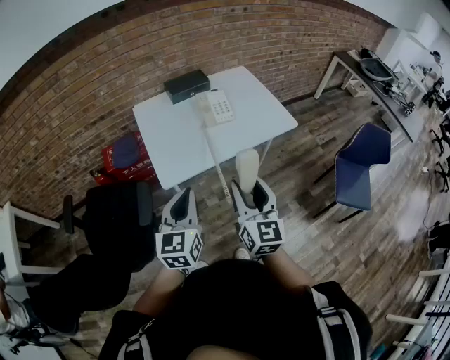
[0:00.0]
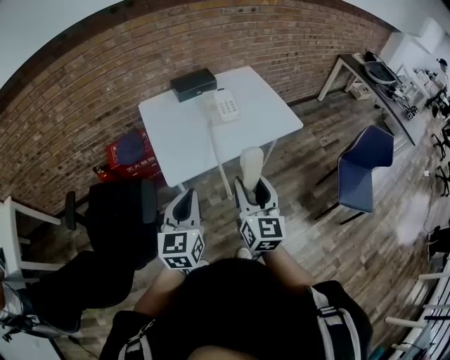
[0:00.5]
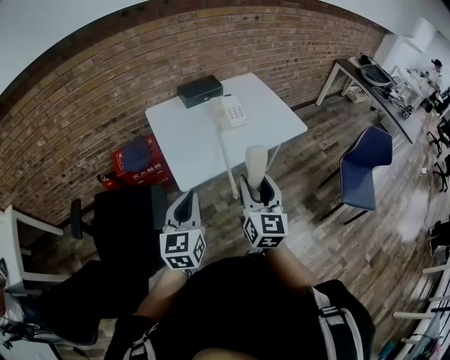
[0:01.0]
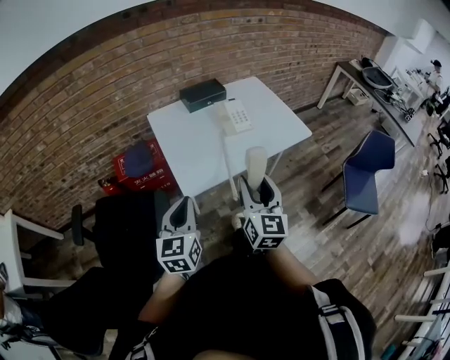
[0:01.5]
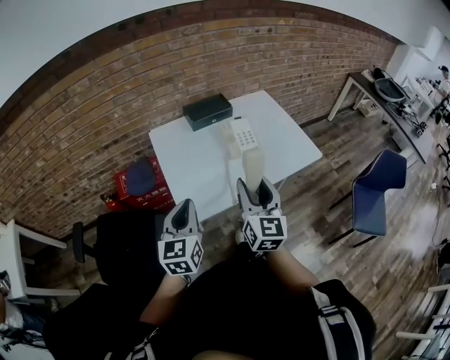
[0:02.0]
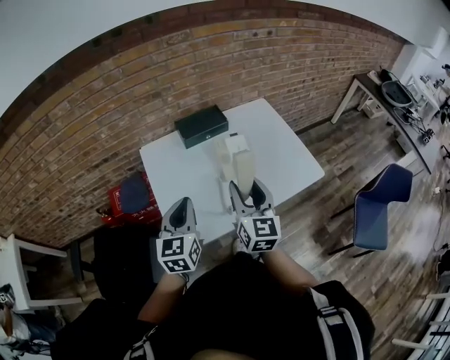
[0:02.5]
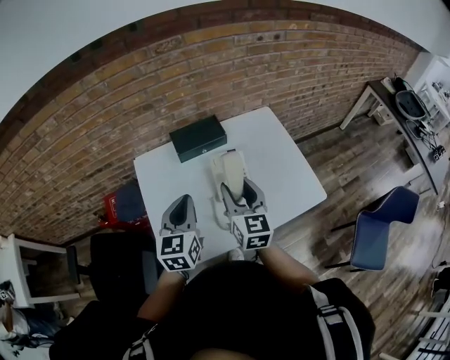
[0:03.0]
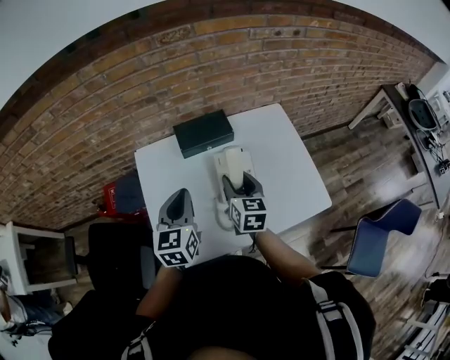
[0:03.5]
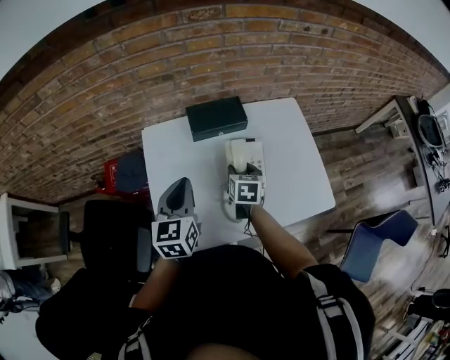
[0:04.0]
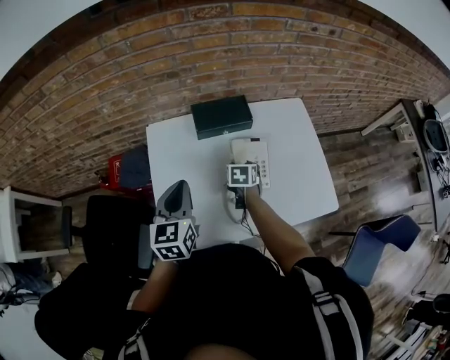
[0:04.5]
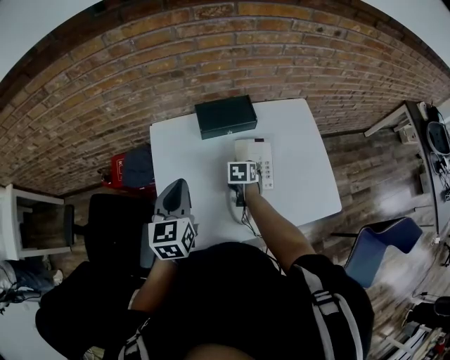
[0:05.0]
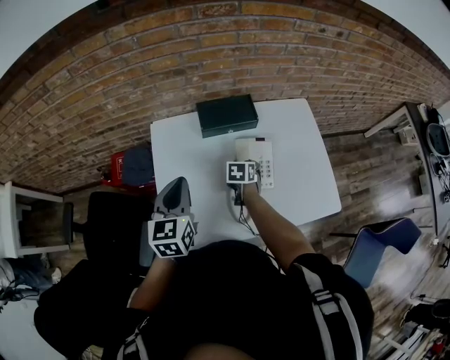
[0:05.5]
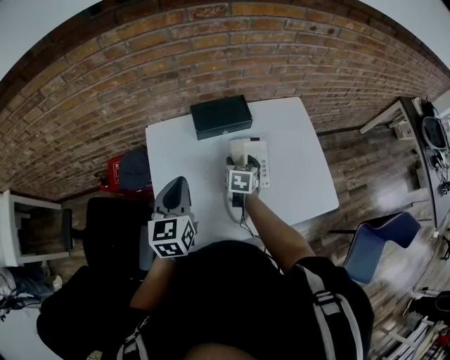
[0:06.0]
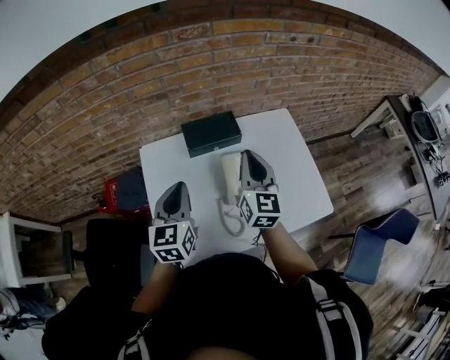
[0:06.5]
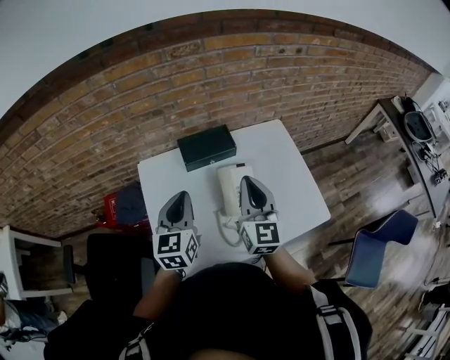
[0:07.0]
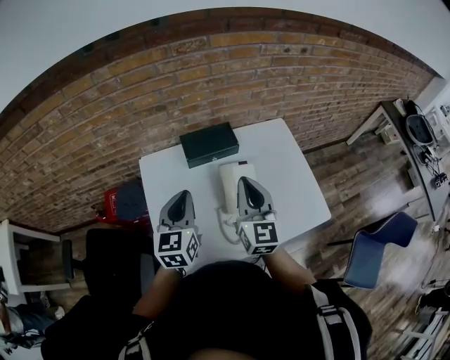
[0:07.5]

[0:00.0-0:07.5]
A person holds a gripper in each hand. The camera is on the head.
0:00.0 to 0:02.0: The two grippers go approximately 15 cm forward and to the left.
0:02.0 to 0:04.0: The right gripper moves forward and downward, roughly 40 cm, and angles its fingers downward, by approximately 40 degrees. Meanwhile the left gripper shifts roughly 30 cm forward.
0:04.0 to 0:05.5: The right gripper is displaced downward by some 10 cm.
0:05.5 to 0:07.5: The left gripper ends up roughly 5 cm from where it was, while the right gripper travels upward by approximately 30 cm, tips its fingers upward by roughly 60 degrees, and closes its fingers.

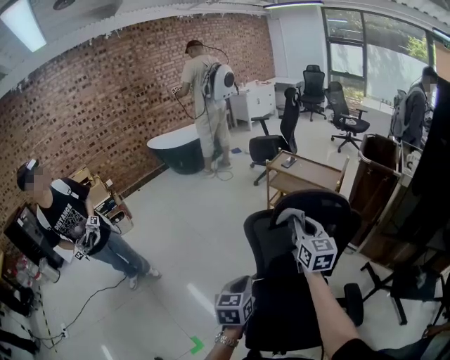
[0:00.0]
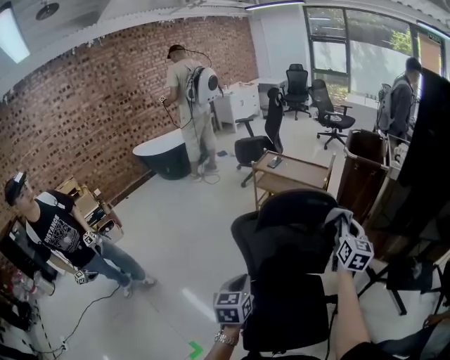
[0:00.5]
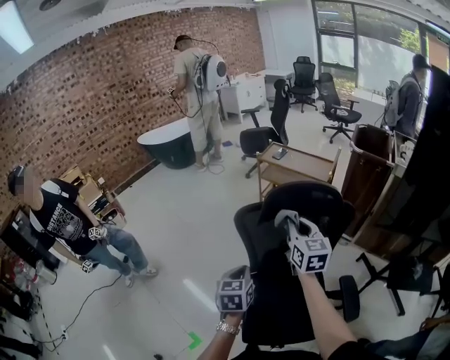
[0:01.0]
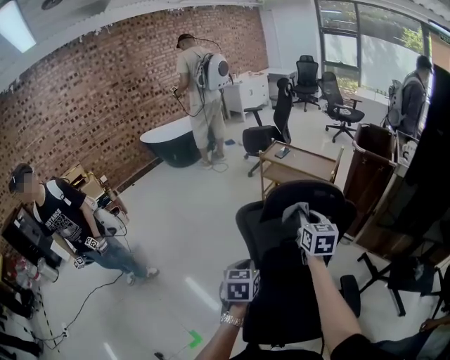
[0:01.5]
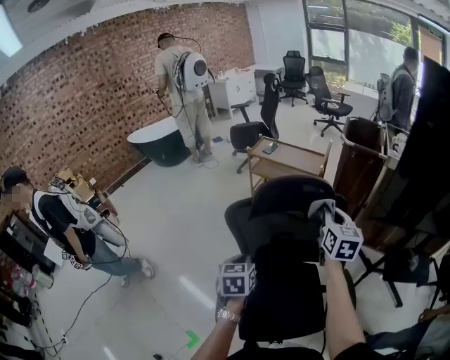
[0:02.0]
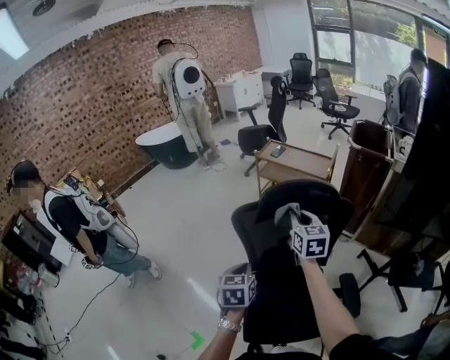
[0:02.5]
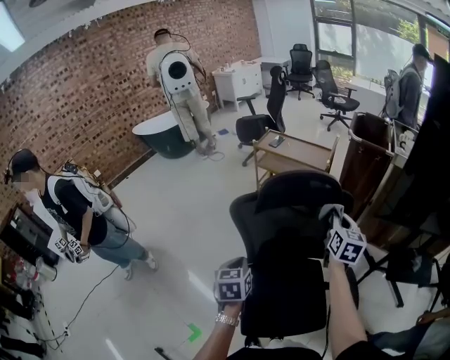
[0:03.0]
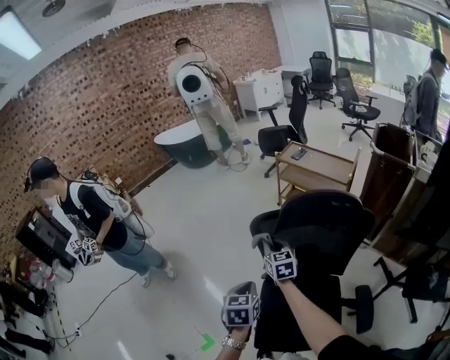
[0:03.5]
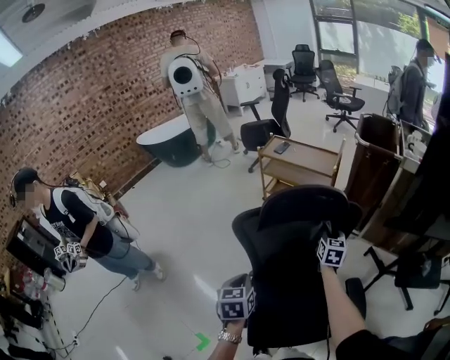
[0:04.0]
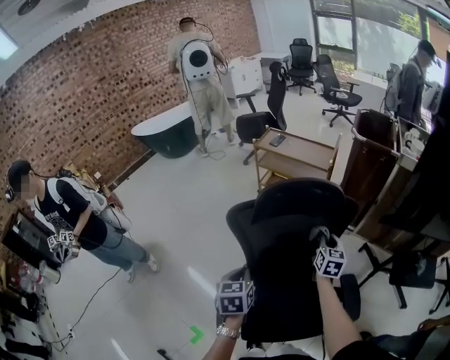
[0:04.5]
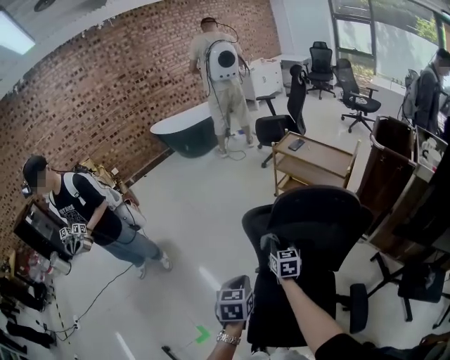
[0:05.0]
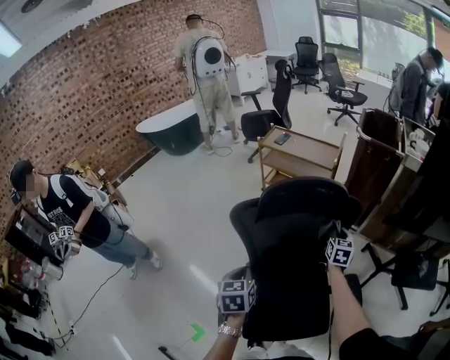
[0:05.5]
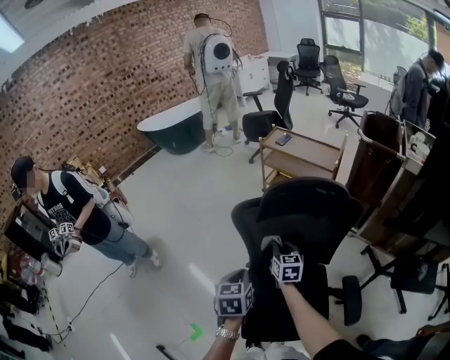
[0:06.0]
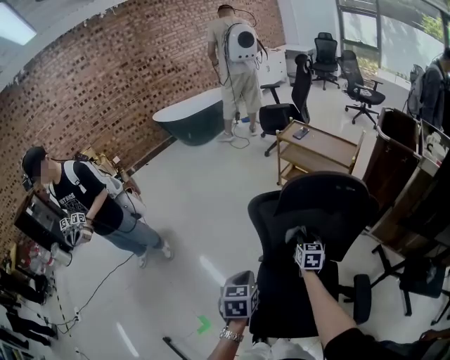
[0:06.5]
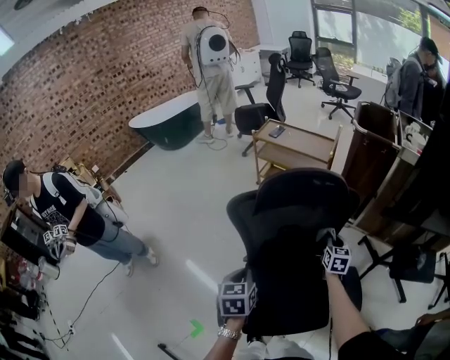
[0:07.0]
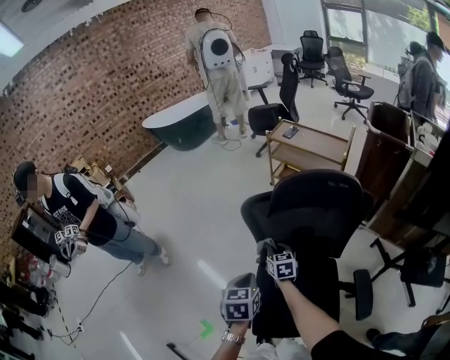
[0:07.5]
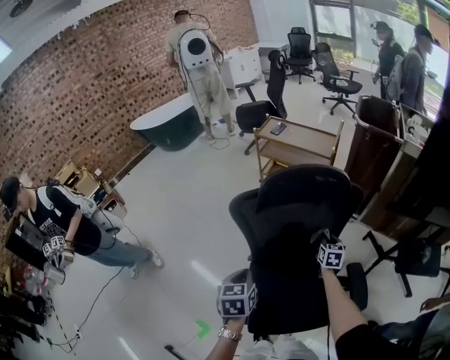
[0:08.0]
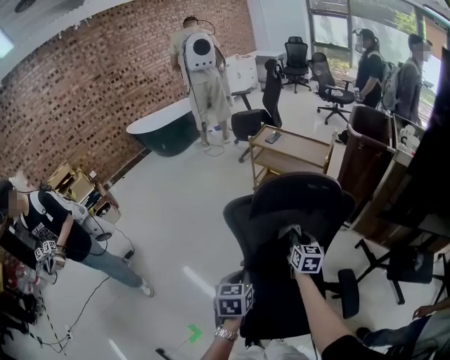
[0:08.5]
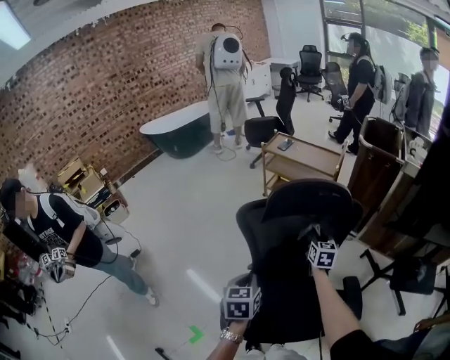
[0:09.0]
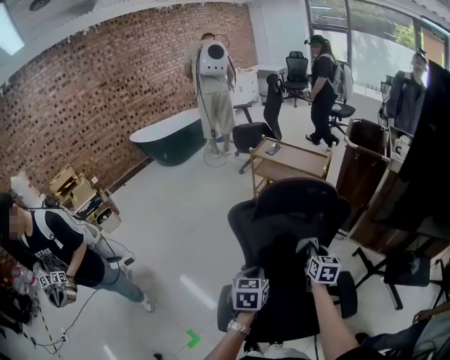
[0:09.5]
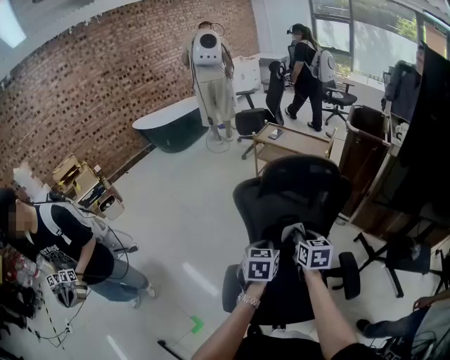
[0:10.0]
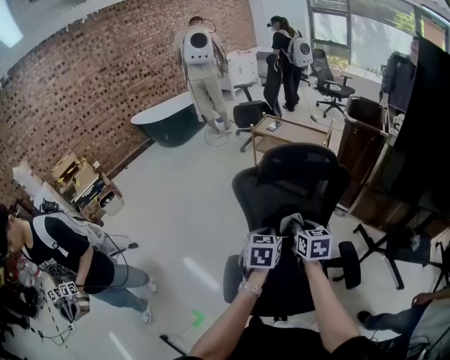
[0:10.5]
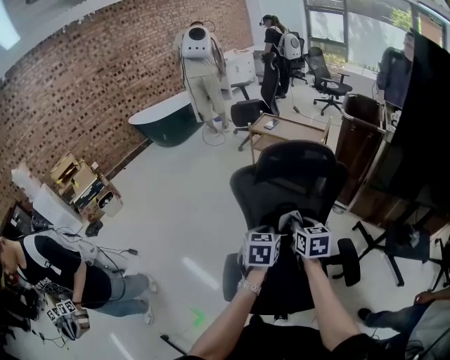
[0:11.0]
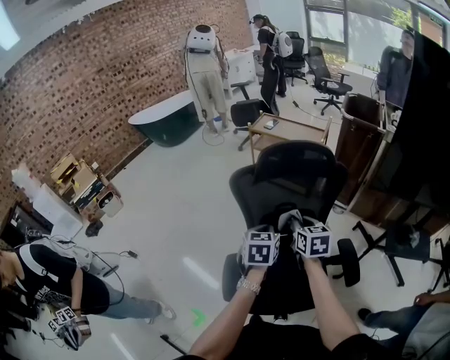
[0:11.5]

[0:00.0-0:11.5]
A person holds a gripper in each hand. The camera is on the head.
0:00.0 to 0:02.0: The left gripper goes roughly 5 cm forward. The right gripper moves left and right over roughly 20 cm, changing direction 2 times, and swivels about 20 degrees.
0:02.0 to 0:04.0: The right gripper swings left and right, roughly 30 cm each way, with 3 reversals.
0:04.0 to 0:06.0: The right gripper swings left and right, some 30 cm each way, with 2 reversals, and turns by approximately 20 degrees.
0:06.0 to 0:07.5: The right gripper shifts approximately 5 cm downward, and goes to the right and returns, about 25 cm each way.
0:07.5 to 0:09.5: The left gripper shifts roughly 10 cm to the right, while the right gripper moves left and right over some 30 cm, changing direction 2 times, and changes its angle by some 20 degrees.
0:09.5 to 0:11.5: The right gripper goes approximately 10 cm to the left, upward and backward.

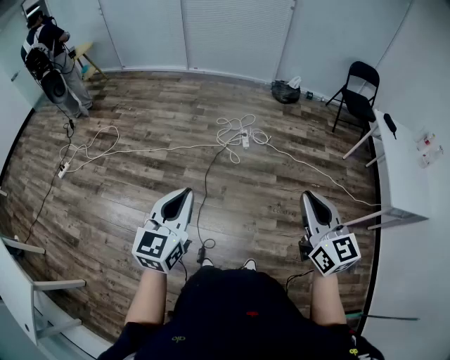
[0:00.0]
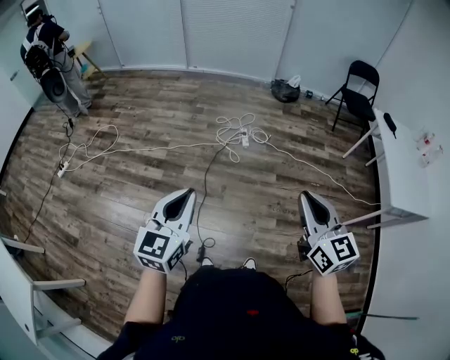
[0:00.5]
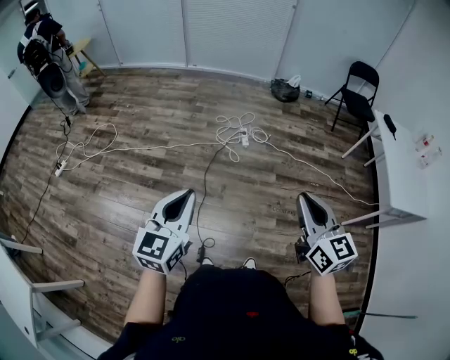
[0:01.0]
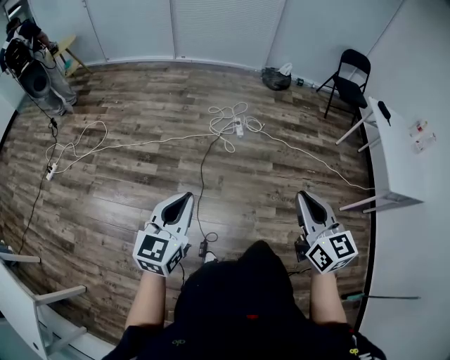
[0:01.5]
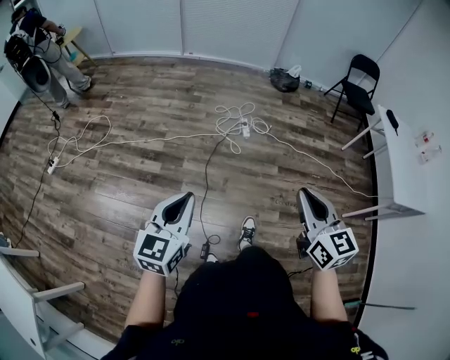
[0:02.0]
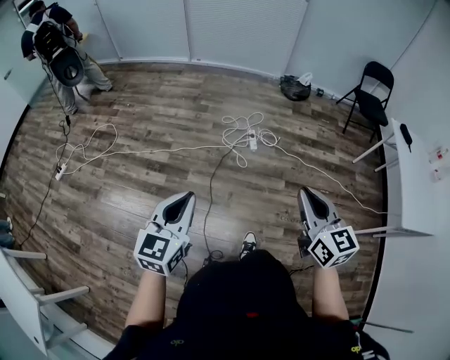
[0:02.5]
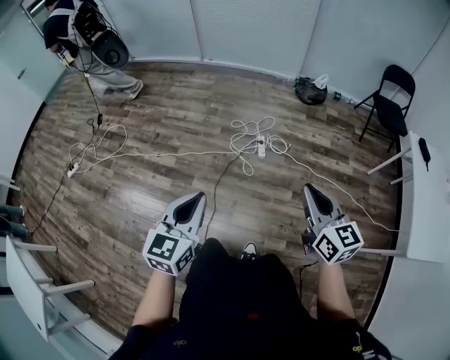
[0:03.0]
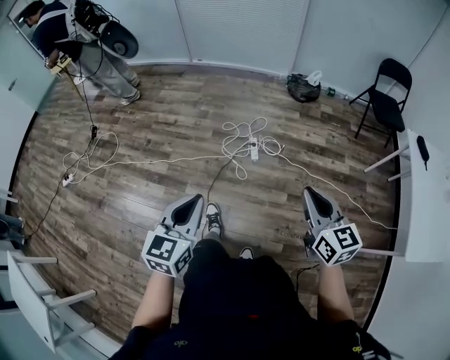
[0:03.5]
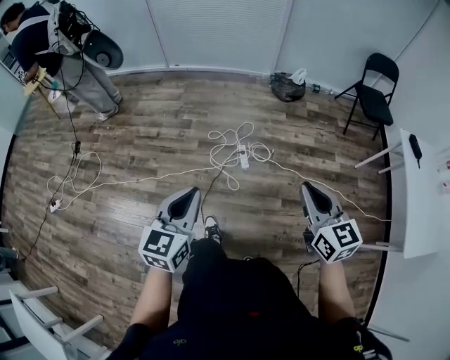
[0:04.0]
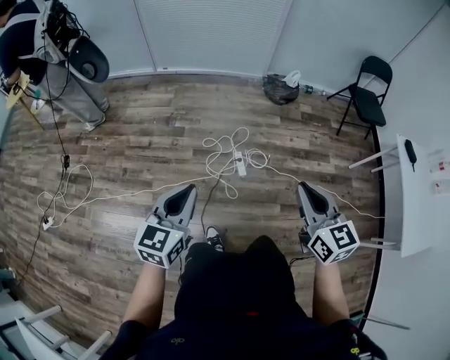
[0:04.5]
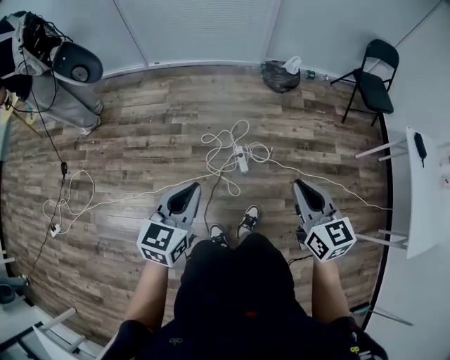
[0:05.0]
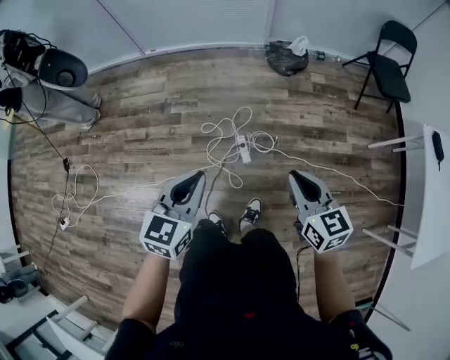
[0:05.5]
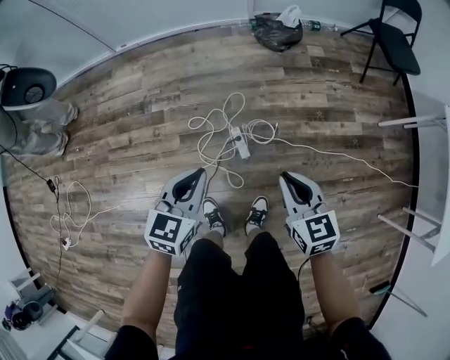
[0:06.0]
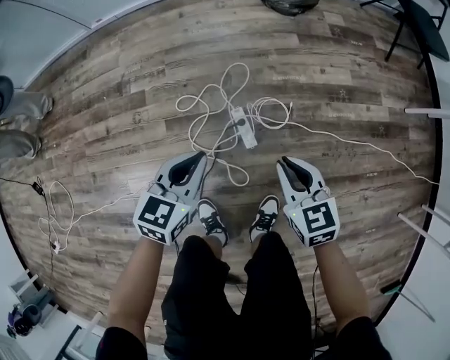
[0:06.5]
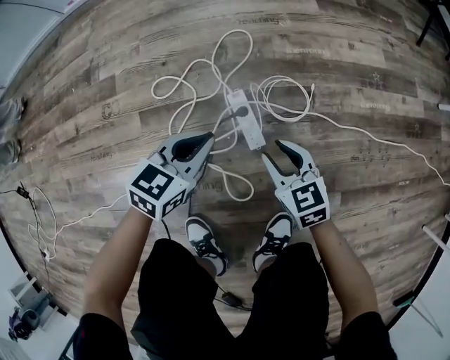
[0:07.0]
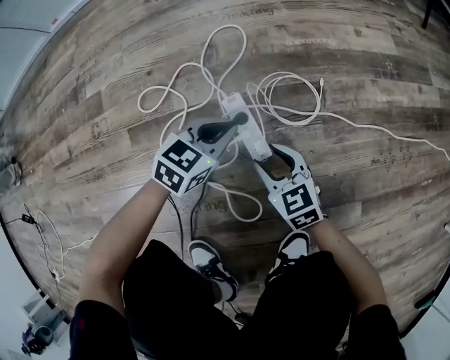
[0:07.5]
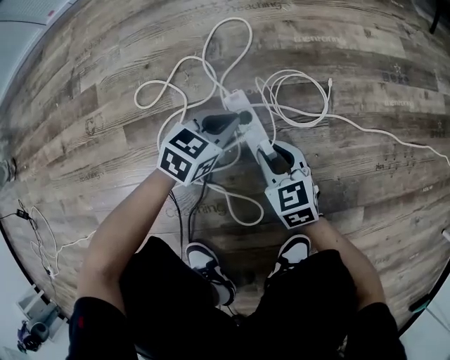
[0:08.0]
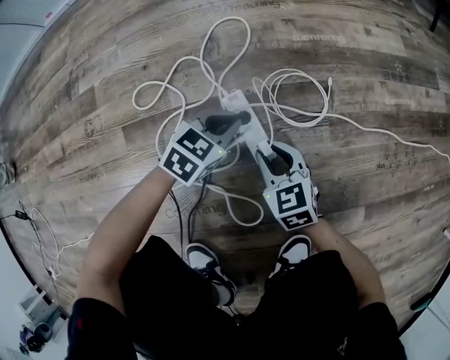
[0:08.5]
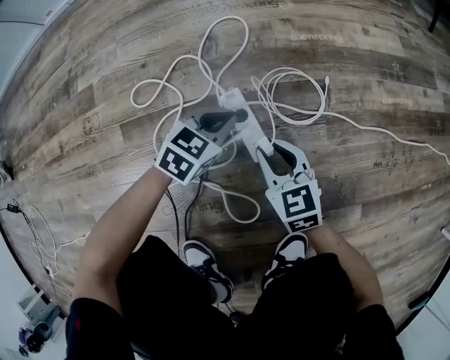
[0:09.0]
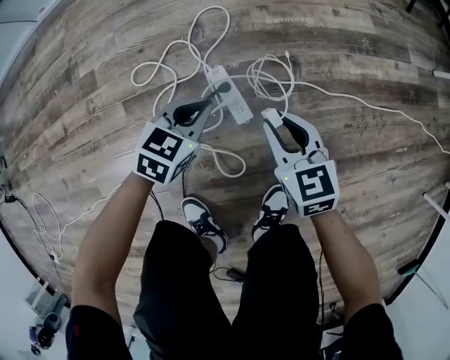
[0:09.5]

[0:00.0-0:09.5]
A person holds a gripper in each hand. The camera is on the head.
0:00.0 to 0:02.0: The right gripper goes some 10 cm to the left, while the left gripper shifts approximately 10 cm to the left and downward.
0:02.0 to 0:04.0: Both grippers are carried forward, about 50 cm.
0:04.0 to 0:05.5: The right gripper travels forward and downward by approximately 30 cm, while the left gripper goes roughly 30 cm forward.
0:05.5 to 0:07.5: Both grippers move downward, some 90 cm. The left gripper changes its angle by some 40 degrees; the right gripper opens its fingers.
0:07.5 to 0:09.5: The left gripper moves upward, some 10 cm. The right gripper travels upward by some 15 cm.
